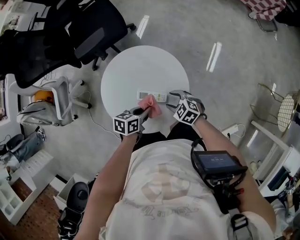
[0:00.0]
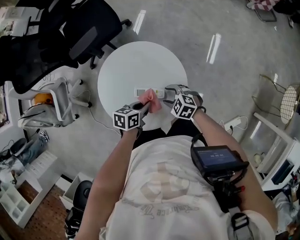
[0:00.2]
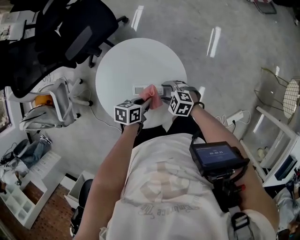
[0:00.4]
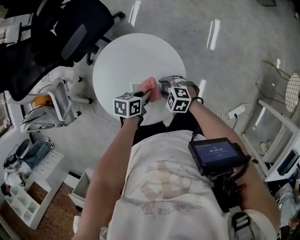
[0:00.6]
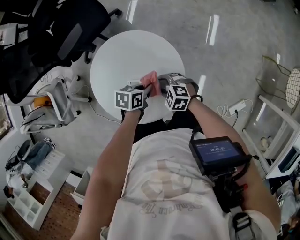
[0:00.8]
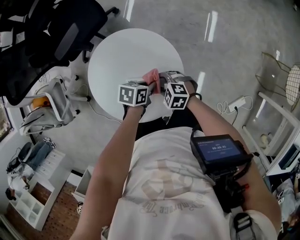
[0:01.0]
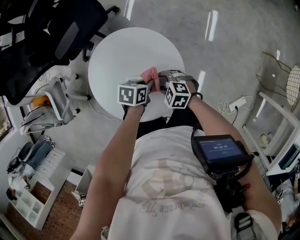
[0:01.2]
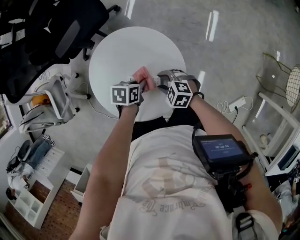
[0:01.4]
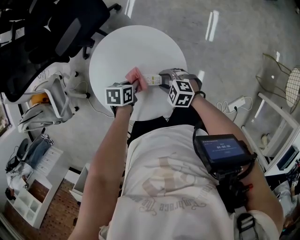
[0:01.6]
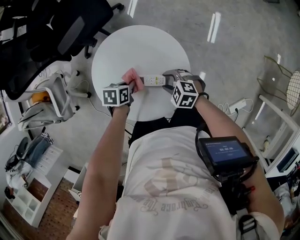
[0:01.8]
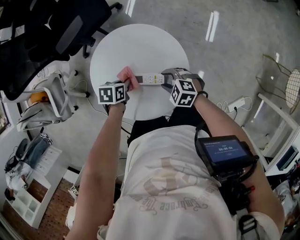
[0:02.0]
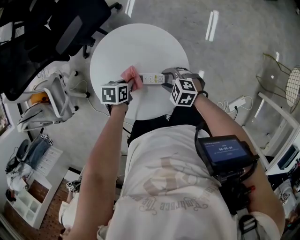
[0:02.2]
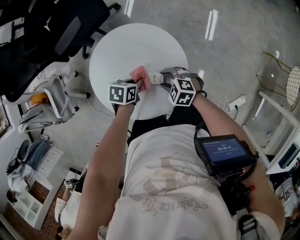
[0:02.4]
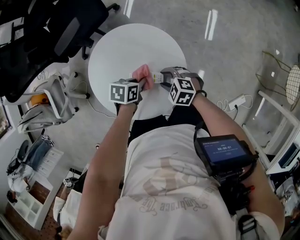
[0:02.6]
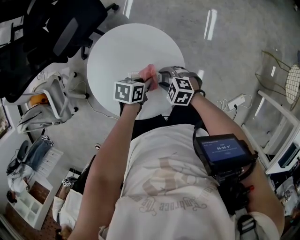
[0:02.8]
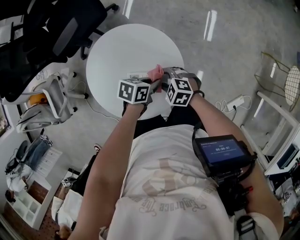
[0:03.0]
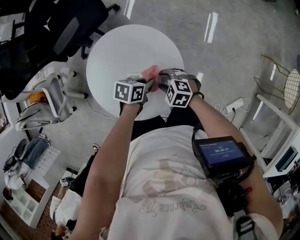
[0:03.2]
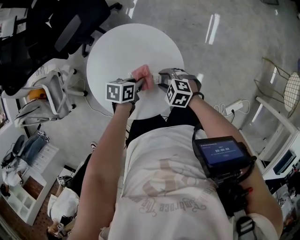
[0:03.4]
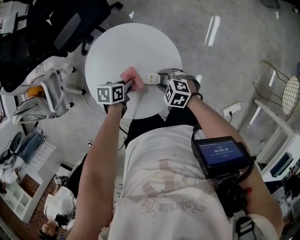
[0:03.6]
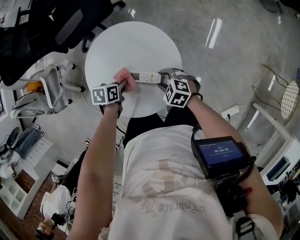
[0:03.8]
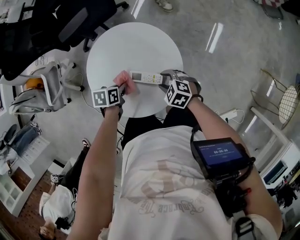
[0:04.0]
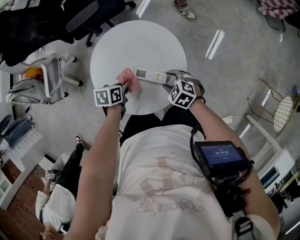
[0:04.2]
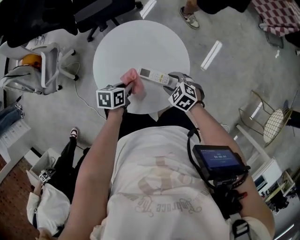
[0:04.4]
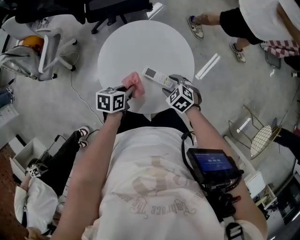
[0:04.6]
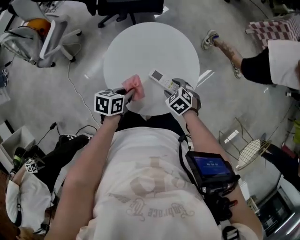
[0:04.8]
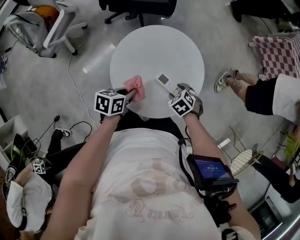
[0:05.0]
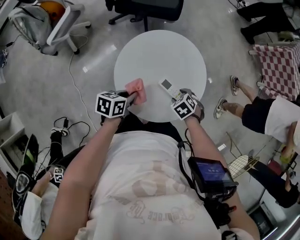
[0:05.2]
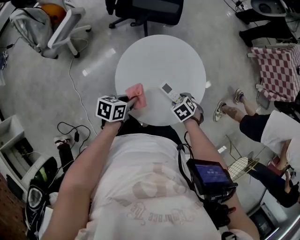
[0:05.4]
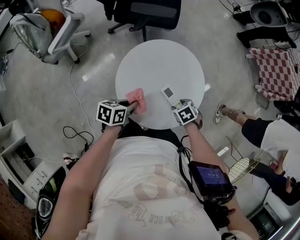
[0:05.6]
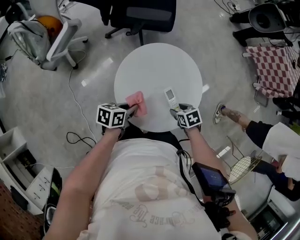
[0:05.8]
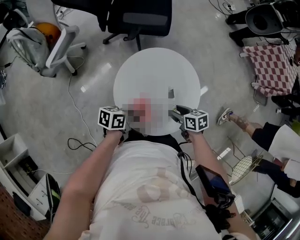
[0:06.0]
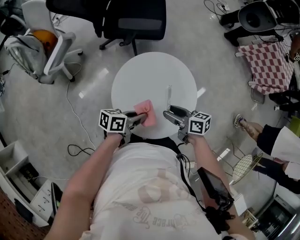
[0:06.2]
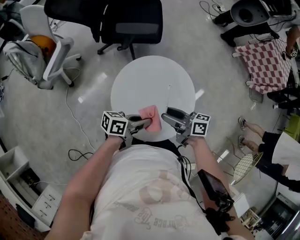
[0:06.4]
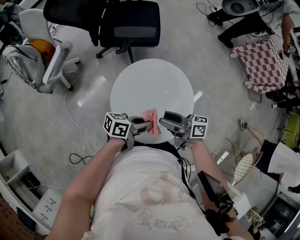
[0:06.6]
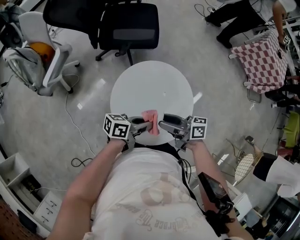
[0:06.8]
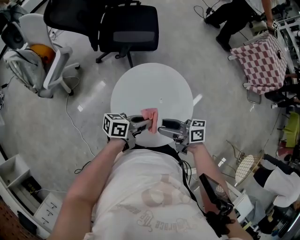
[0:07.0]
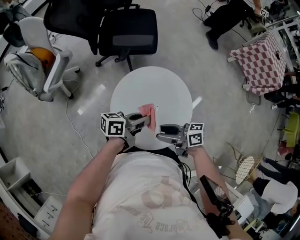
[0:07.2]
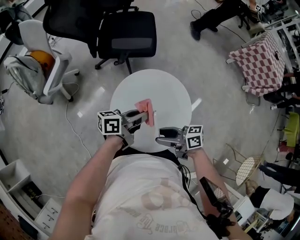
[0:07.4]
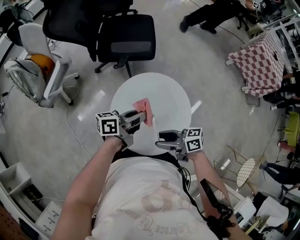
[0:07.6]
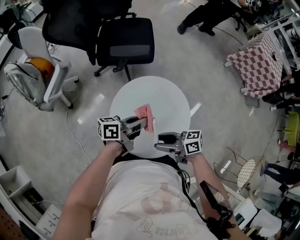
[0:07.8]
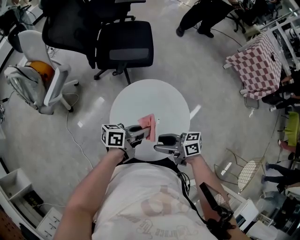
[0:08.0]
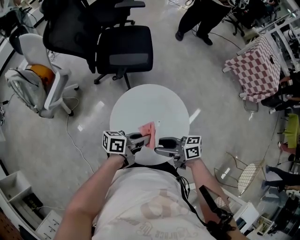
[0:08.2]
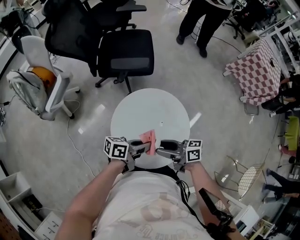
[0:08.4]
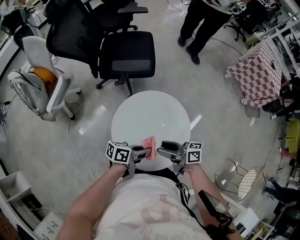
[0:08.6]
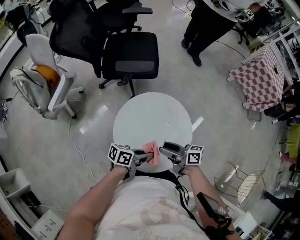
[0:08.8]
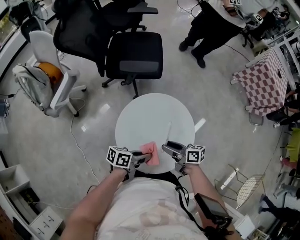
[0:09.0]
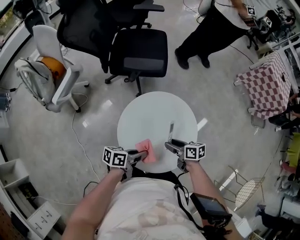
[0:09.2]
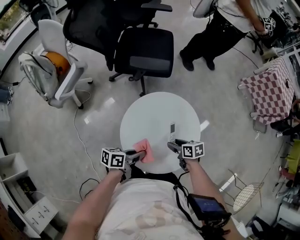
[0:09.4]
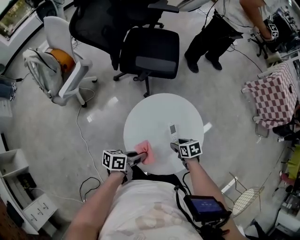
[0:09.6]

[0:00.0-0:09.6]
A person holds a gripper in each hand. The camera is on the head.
0:00.0 to 0:01.6: The left gripper travels downward by about 5 cm, and turns by some 20 degrees.
0:01.6 to 0:03.2: The left gripper shifts by approximately 10 cm.
0:03.2 to 0:04.8: The left gripper changes place by roughly 20 cm, and changes its angle by about 40 degrees.
0:04.8 to 0:06.4: The right gripper travels upward by about 15 cm, and tips its fingers upward by about 60 degrees. Meanwhile the left gripper is displaced upward by approximately 10 cm, and tips its fingers upward by roughly 40 degrees.
0:06.4 to 0:08.0: The right gripper changes place by roughly 5 cm.
0:08.0 to 0:09.6: The left gripper is displaced downward by some 10 cm, and turns by approximately 20 degrees; the right gripper heads downward, covering roughly 20 cm, and points its fingers about 50 degrees further downward.

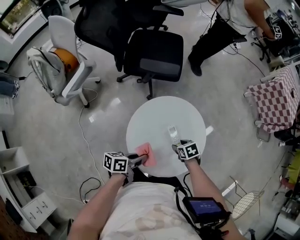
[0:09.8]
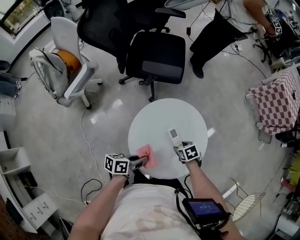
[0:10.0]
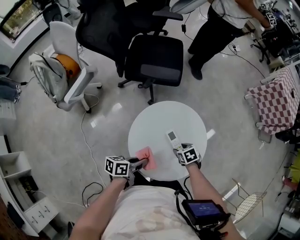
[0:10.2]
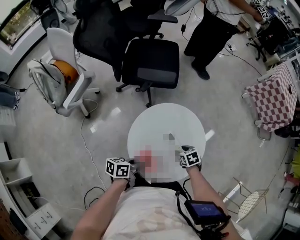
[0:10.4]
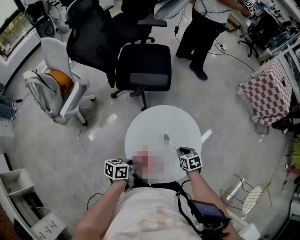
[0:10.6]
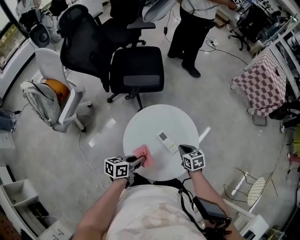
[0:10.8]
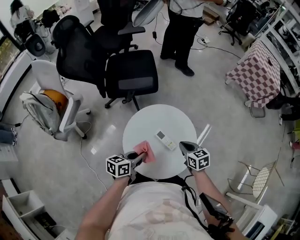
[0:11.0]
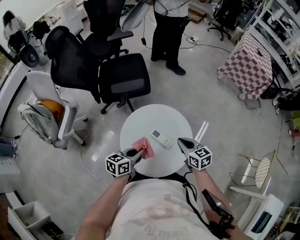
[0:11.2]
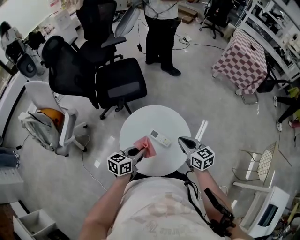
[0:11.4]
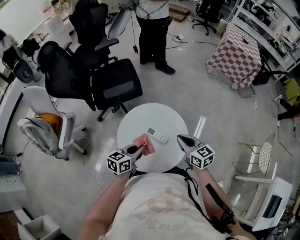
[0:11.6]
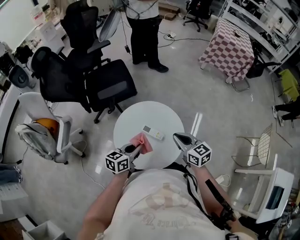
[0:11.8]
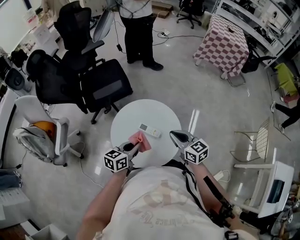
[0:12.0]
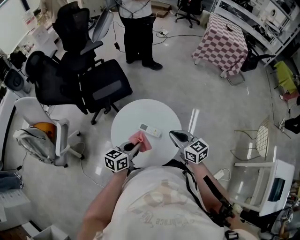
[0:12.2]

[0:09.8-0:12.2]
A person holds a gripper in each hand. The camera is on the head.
0:09.8 to 0:11.0: The left gripper travels upward by roughly 5 cm, and turns by roughly 20 degrees; the right gripper goes roughly 15 cm upward, swivels roughly 40 degrees, and closes up.
0:11.0 to 0:12.2: The left gripper shifts about 10 cm to the right and upward, and turns by approximately 20 degrees, while the right gripper goes about 15 cm upward and backward, and turns by roughly 20 degrees.

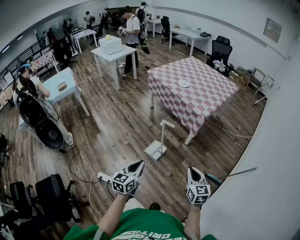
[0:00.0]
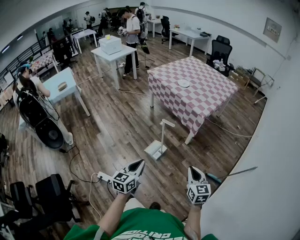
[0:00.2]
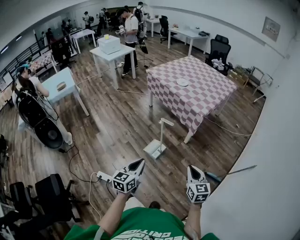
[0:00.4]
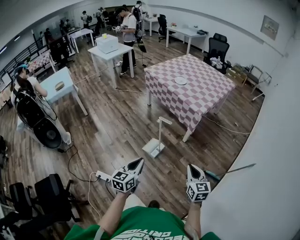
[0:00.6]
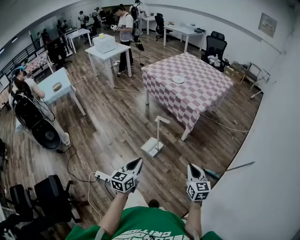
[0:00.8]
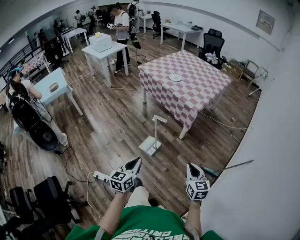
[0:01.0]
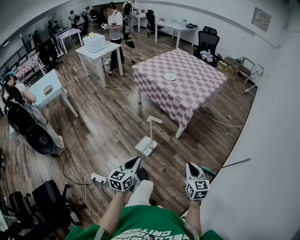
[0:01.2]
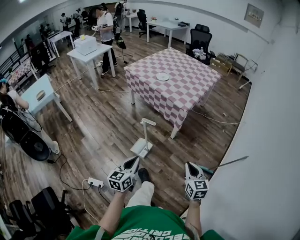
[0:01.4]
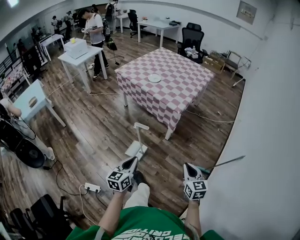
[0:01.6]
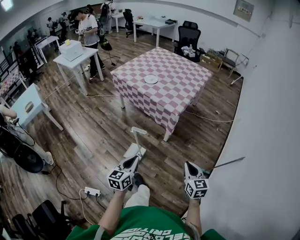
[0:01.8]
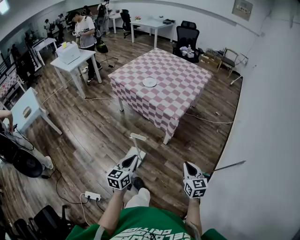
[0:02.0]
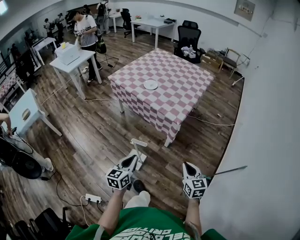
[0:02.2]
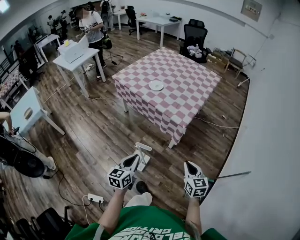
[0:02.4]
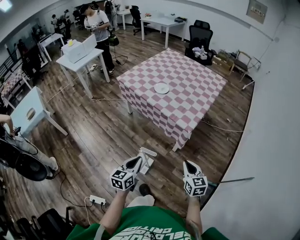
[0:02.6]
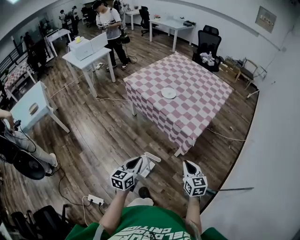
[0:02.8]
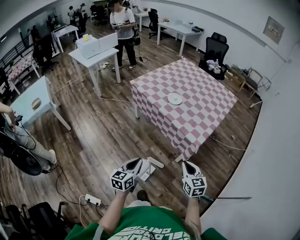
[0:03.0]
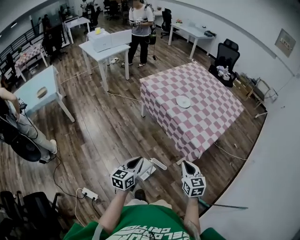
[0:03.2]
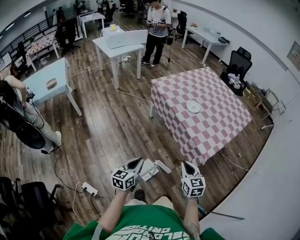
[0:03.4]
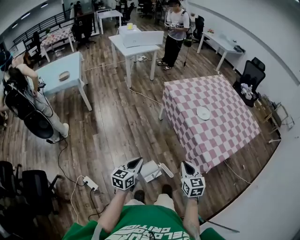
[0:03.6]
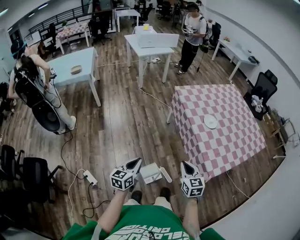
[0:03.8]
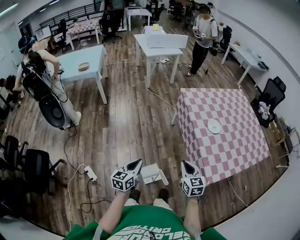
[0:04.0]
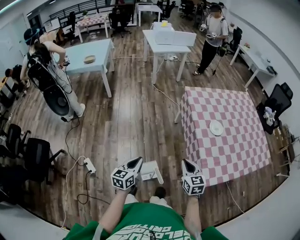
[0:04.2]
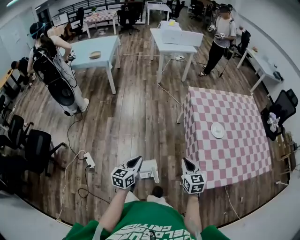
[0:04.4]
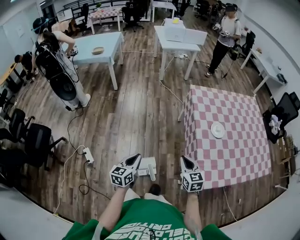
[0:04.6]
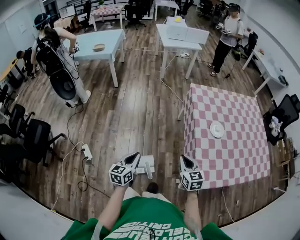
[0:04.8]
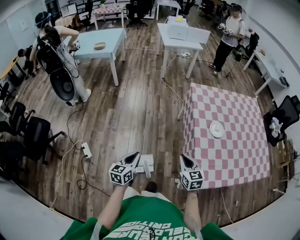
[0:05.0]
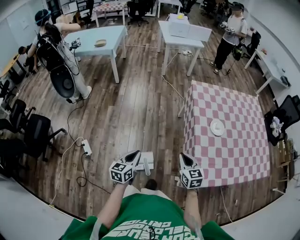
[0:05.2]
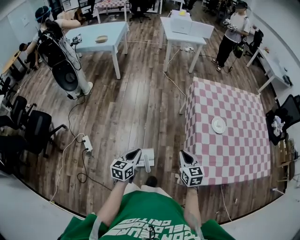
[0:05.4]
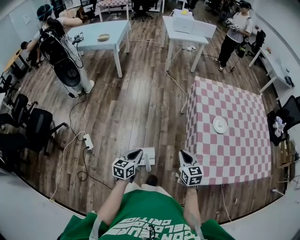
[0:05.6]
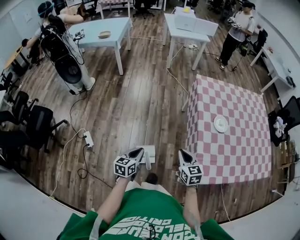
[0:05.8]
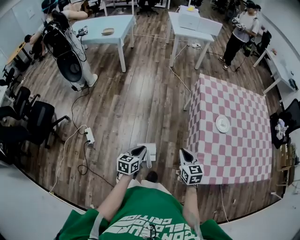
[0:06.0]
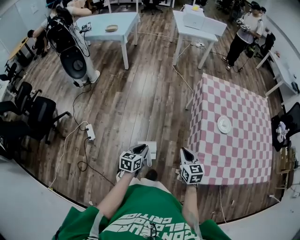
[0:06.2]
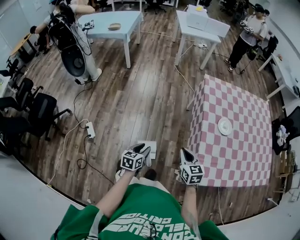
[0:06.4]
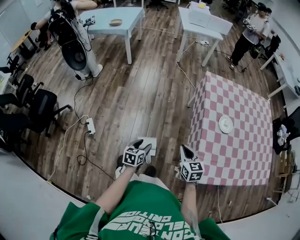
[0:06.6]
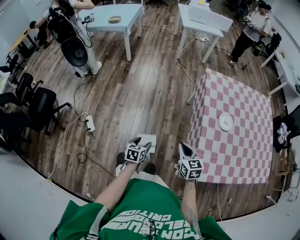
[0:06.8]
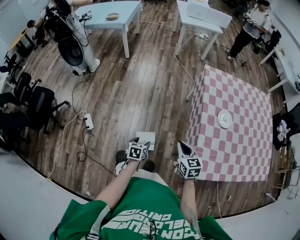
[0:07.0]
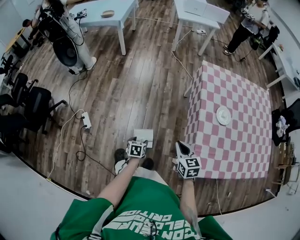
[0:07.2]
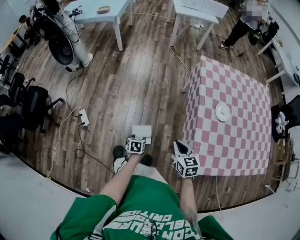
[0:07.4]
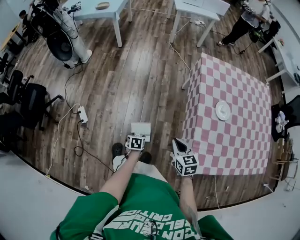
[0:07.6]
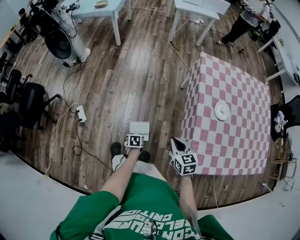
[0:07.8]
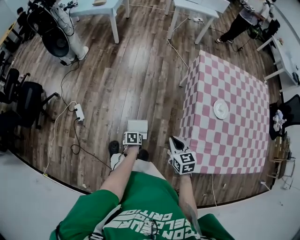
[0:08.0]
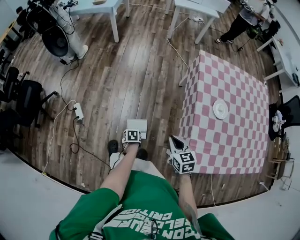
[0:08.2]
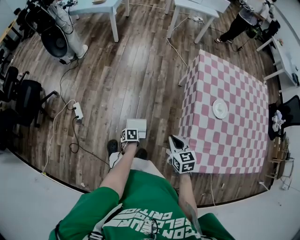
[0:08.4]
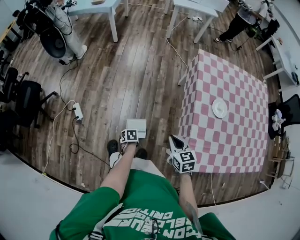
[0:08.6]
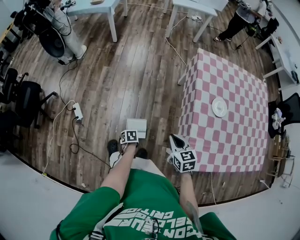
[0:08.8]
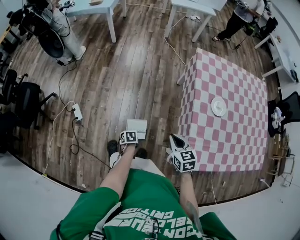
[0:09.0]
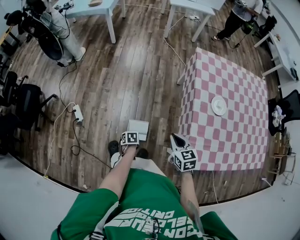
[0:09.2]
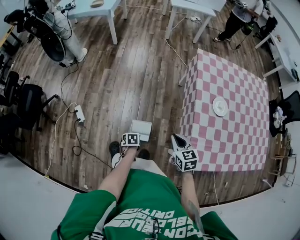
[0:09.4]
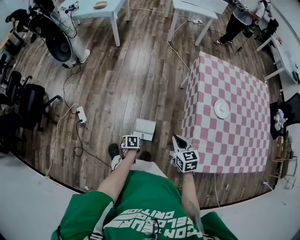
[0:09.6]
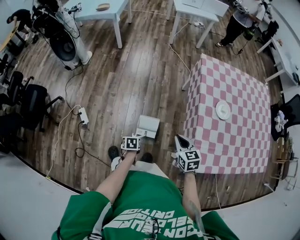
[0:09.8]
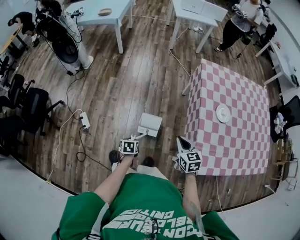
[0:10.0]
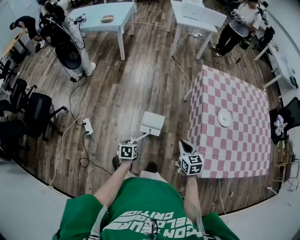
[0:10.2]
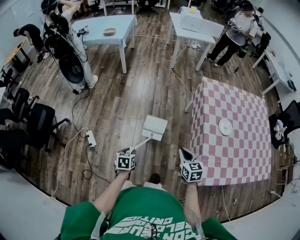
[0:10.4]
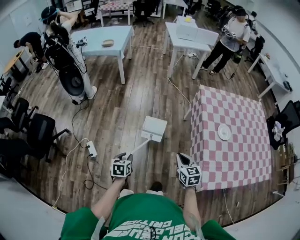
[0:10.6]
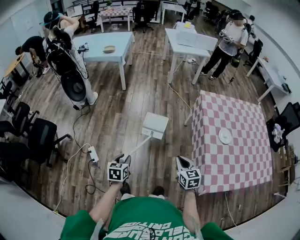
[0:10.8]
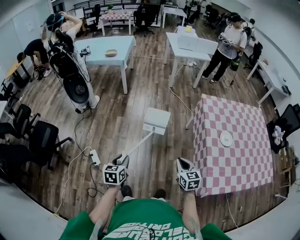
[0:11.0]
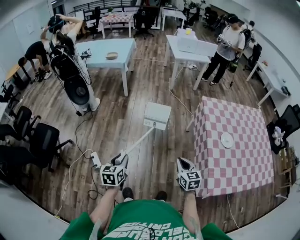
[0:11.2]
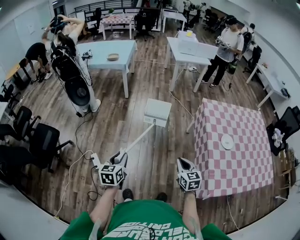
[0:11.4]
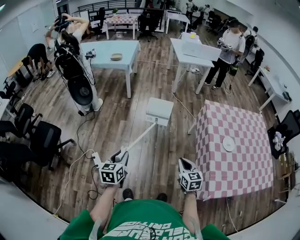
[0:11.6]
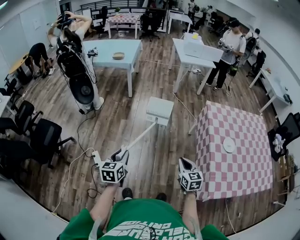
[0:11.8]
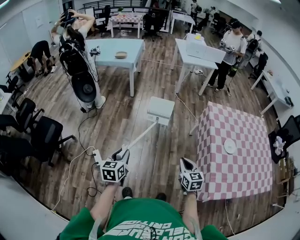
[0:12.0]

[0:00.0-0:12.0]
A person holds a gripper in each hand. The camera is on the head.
0:00.0 to 0:01.6: The right gripper shifts some 10 cm to the right and forward. The left gripper travels forward and to the right by about 15 cm.
0:01.6 to 0:03.0: The two grippers go approximately 30 cm forward and to the left.
0:03.0 to 0:04.4: The left gripper rotates about 40 degrees. Meanwhile the right gripper ends up some 20 cm from where it was, and swivels some 40 degrees.
0:04.4 to 0:06.0: The right gripper changes place by about 5 cm, while the left gripper moves downward and to the right, approximately 10 cm.
0:06.0 to 0:07.6: The right gripper ends up about 5 cm from where it was; the left gripper shifts approximately 20 cm downward, points its fingers roughly 40 degrees further downward, and opens its fingers.
0:07.6 to 0:09.0: The left gripper ends up approximately 5 cm from where it was, and closes its fingers.
0:09.0 to 0:10.4: The right gripper changes place by roughly 10 cm. The left gripper is displaced upward by about 20 cm, and turns by about 30 degrees.
0:10.4 to 0:12.0: The left gripper goes about 25 cm upward and to the left, and turns by some 30 degrees. The right gripper shifts some 10 cm to the left and upward.
